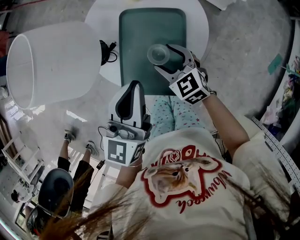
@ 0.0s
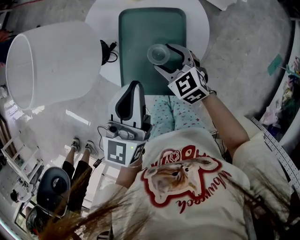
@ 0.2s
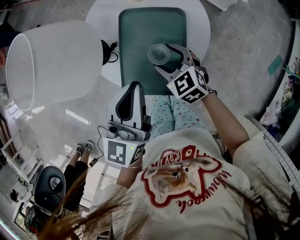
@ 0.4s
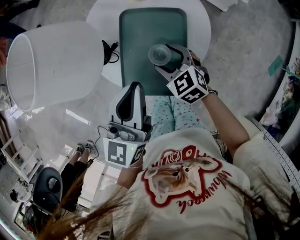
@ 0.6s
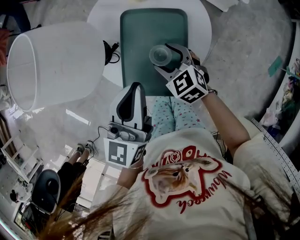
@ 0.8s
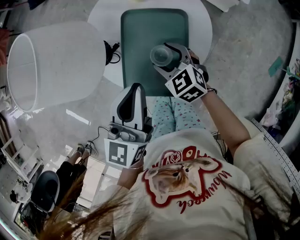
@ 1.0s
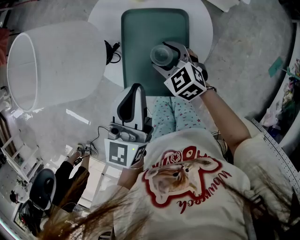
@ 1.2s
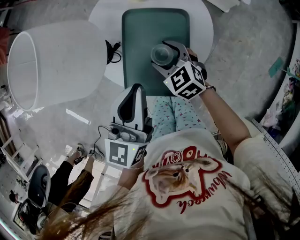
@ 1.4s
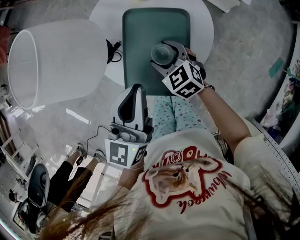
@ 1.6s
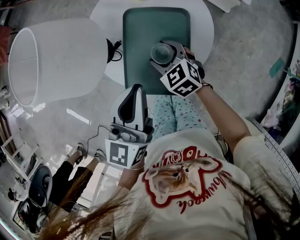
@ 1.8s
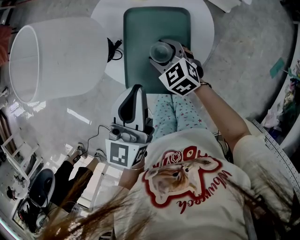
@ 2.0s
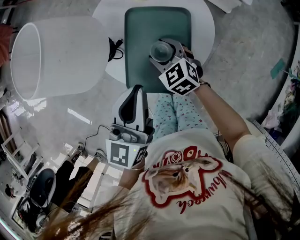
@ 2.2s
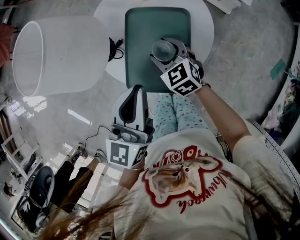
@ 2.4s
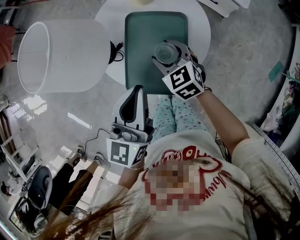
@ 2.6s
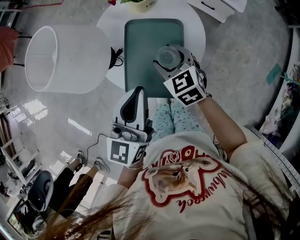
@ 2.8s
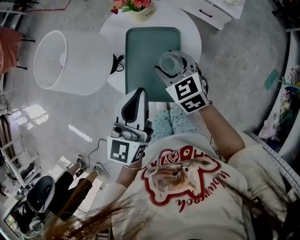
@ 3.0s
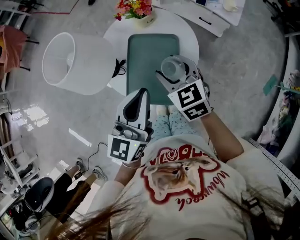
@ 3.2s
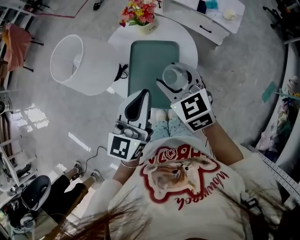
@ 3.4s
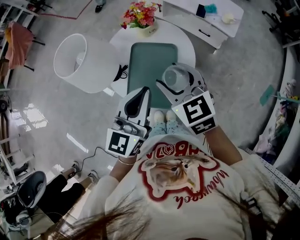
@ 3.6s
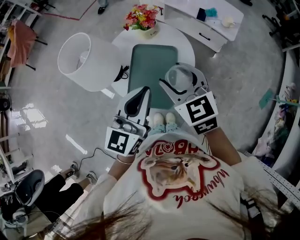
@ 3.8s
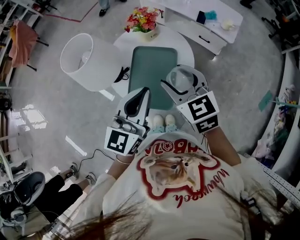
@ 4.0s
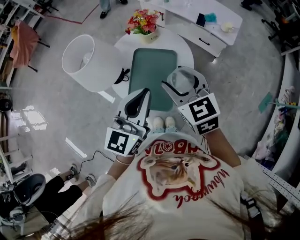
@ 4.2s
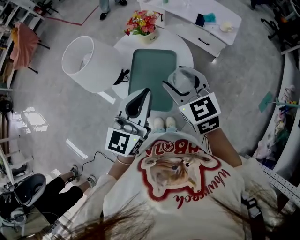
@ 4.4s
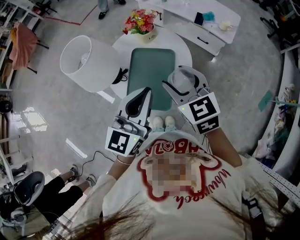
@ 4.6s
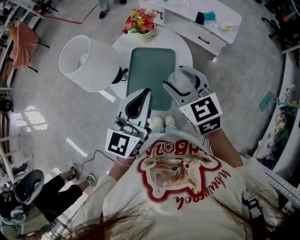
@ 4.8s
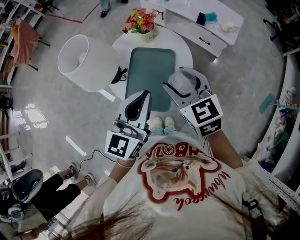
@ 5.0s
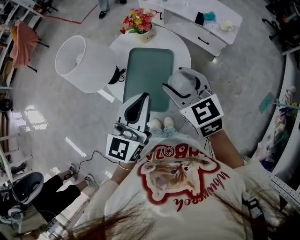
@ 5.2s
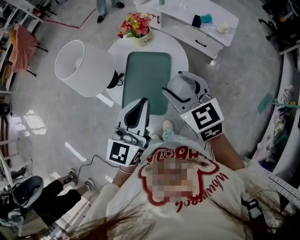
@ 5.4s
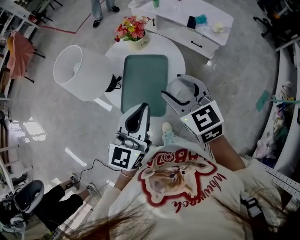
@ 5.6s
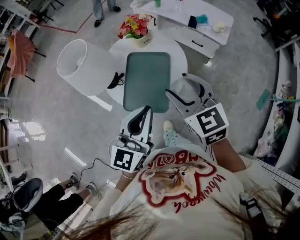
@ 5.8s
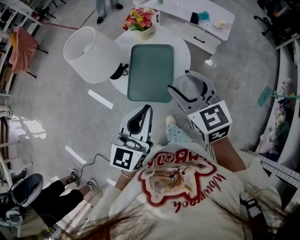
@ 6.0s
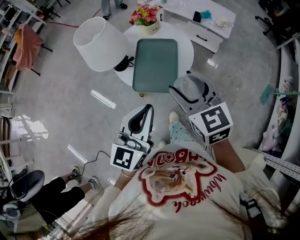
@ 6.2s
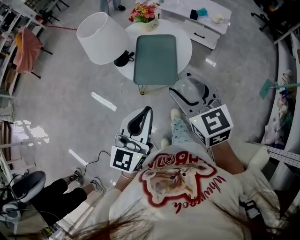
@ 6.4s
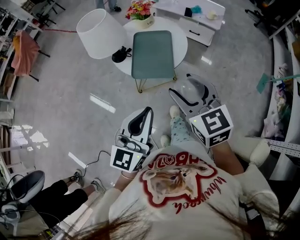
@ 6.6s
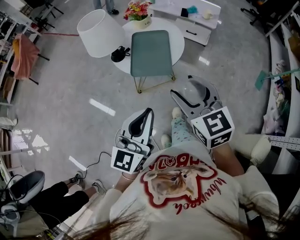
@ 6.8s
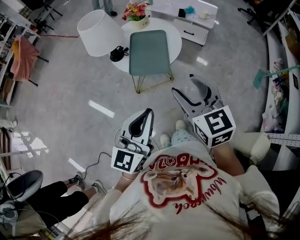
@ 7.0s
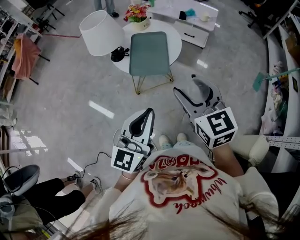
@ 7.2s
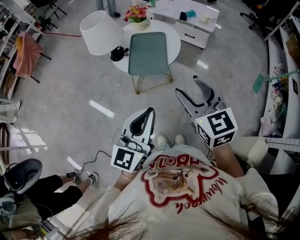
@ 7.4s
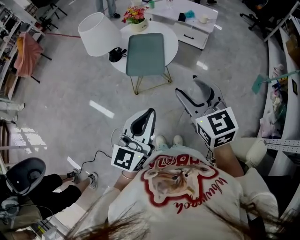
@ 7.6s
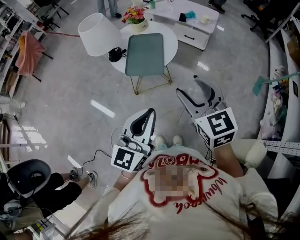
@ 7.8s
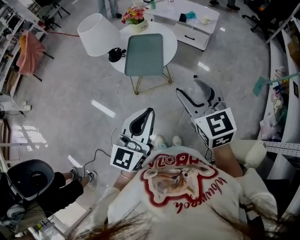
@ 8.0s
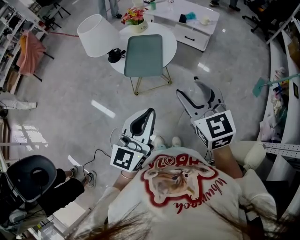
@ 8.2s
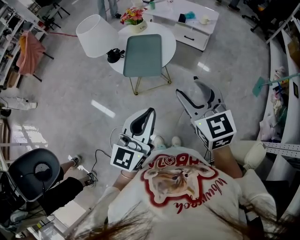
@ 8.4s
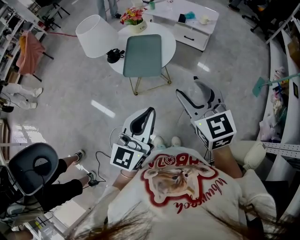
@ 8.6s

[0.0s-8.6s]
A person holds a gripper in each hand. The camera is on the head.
0.0s to 1.4s: The grippers stay close to where they were, moving slightly.
1.4s to 2.8s: The right gripper is displaced upward by approximately 5 cm.
2.8s to 4.4s: The right gripper is displaced upward by some 20 cm; the left gripper travels upward by approximately 10 cm.
4.4s to 5.8s: The left gripper is displaced backward by roughly 5 cm.
5.8s to 7.2s: Both grippers travel together backward, roughly 25 cm.
7.2s to 8.6s: The grippers both shift to the right by approximately 5 cm.

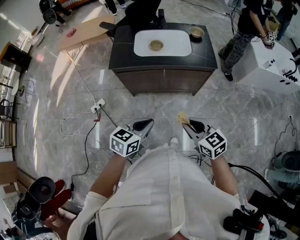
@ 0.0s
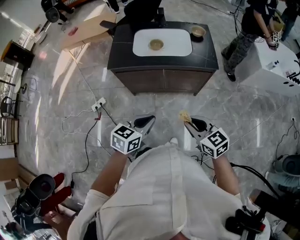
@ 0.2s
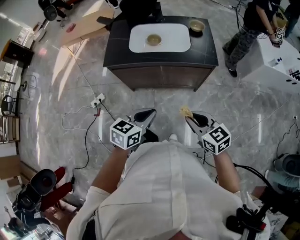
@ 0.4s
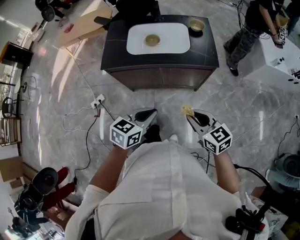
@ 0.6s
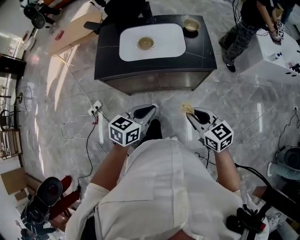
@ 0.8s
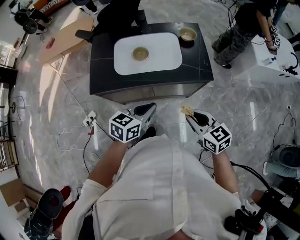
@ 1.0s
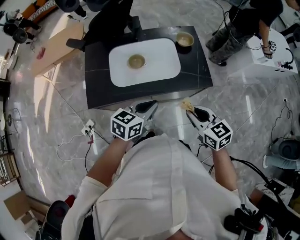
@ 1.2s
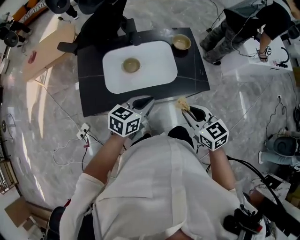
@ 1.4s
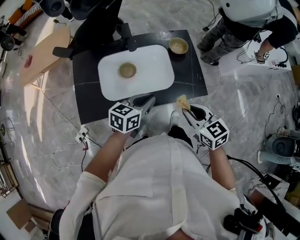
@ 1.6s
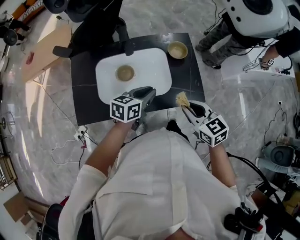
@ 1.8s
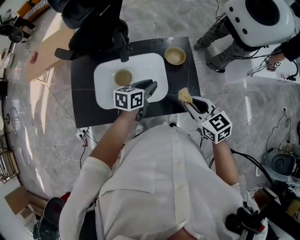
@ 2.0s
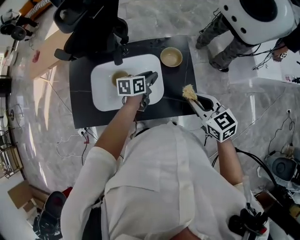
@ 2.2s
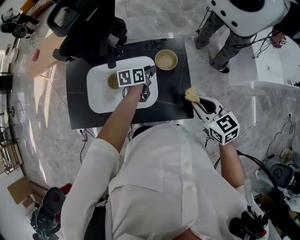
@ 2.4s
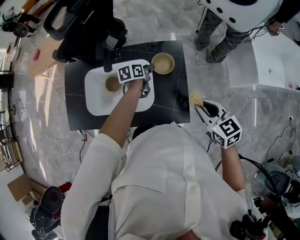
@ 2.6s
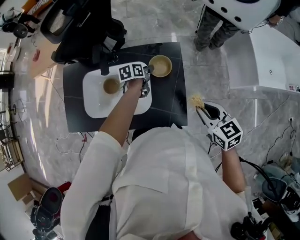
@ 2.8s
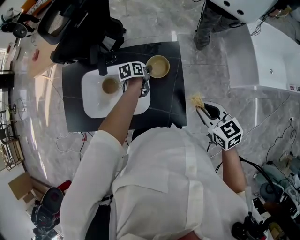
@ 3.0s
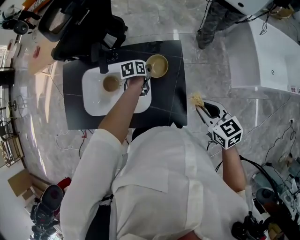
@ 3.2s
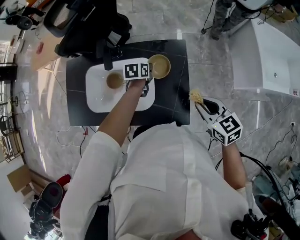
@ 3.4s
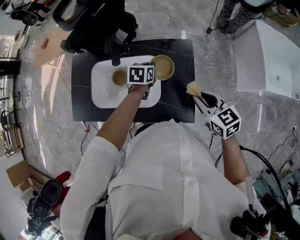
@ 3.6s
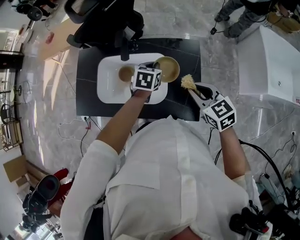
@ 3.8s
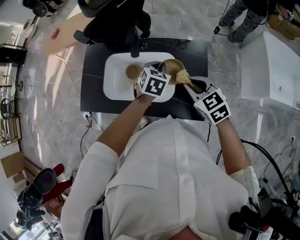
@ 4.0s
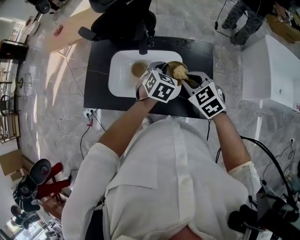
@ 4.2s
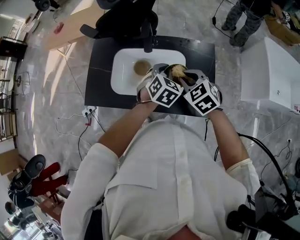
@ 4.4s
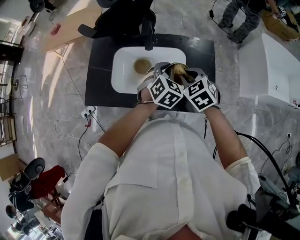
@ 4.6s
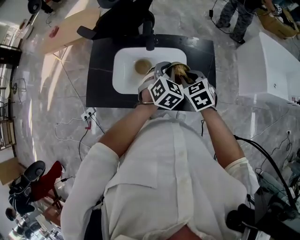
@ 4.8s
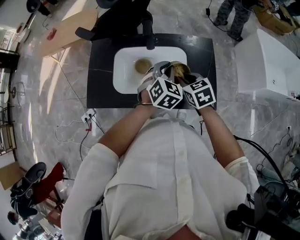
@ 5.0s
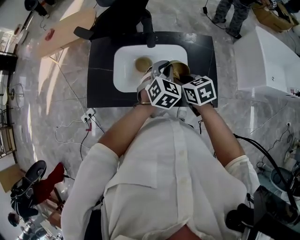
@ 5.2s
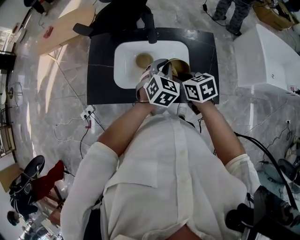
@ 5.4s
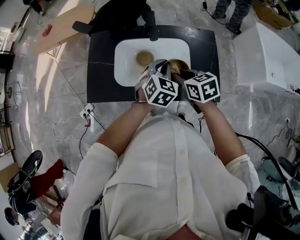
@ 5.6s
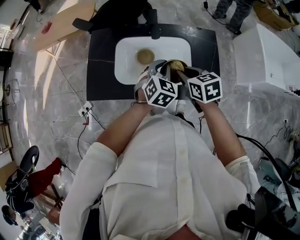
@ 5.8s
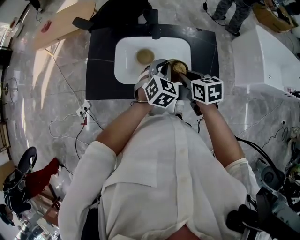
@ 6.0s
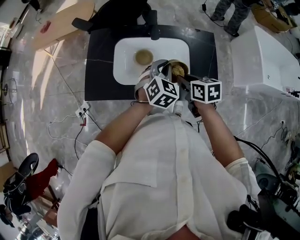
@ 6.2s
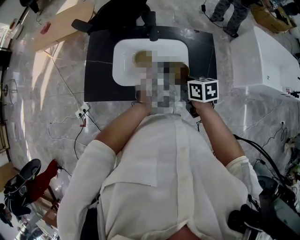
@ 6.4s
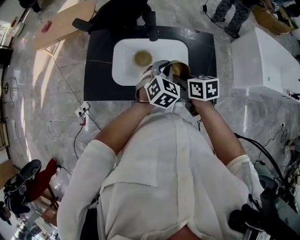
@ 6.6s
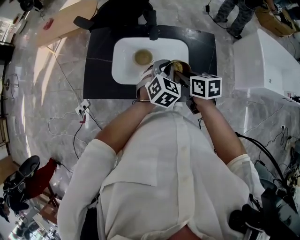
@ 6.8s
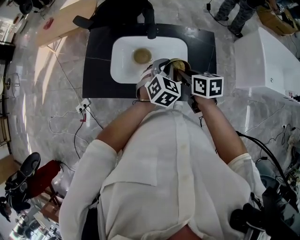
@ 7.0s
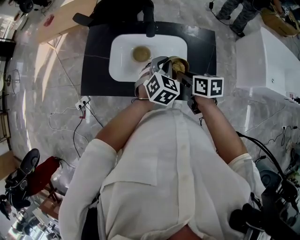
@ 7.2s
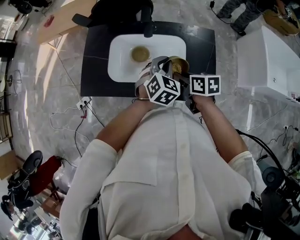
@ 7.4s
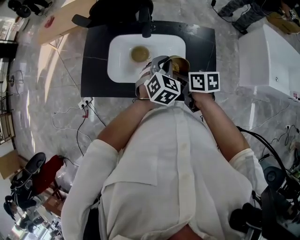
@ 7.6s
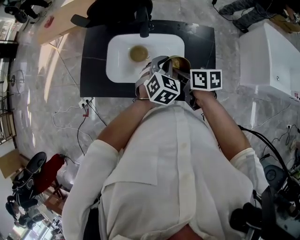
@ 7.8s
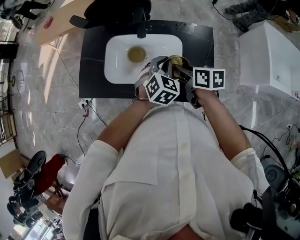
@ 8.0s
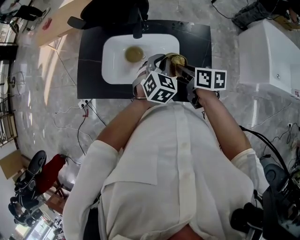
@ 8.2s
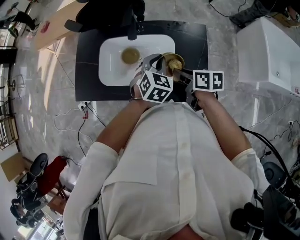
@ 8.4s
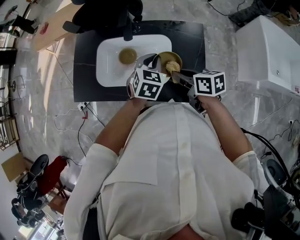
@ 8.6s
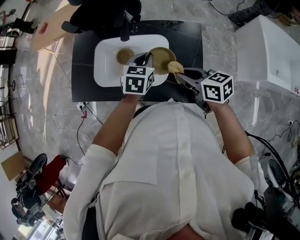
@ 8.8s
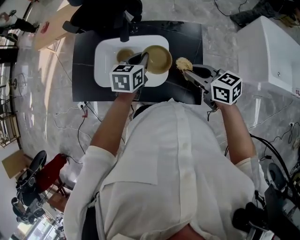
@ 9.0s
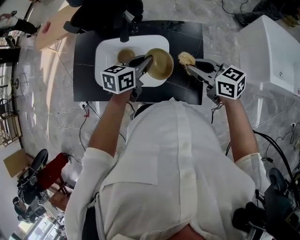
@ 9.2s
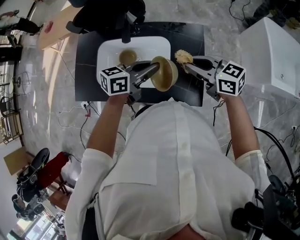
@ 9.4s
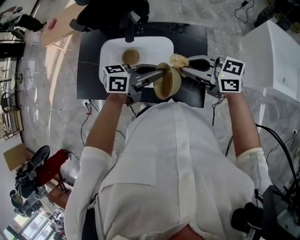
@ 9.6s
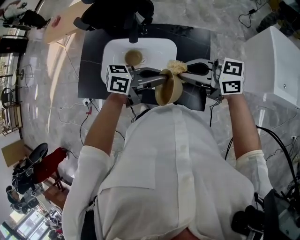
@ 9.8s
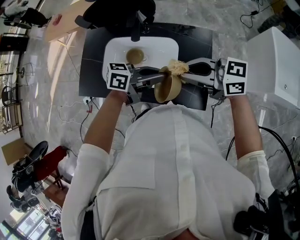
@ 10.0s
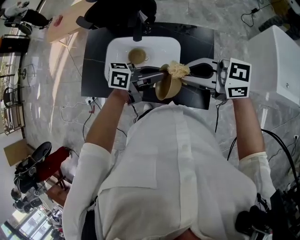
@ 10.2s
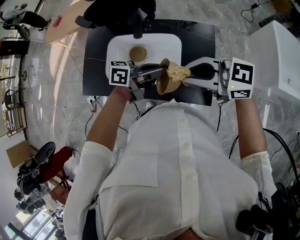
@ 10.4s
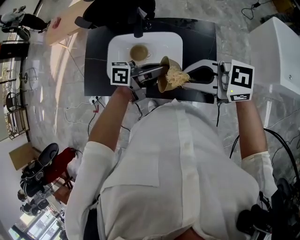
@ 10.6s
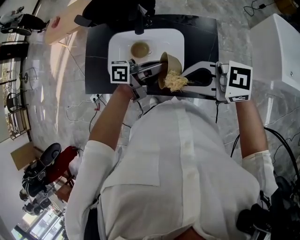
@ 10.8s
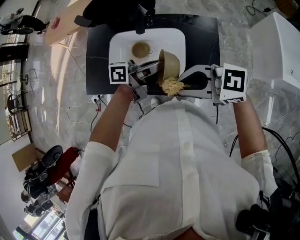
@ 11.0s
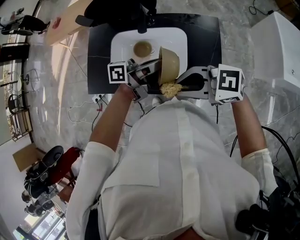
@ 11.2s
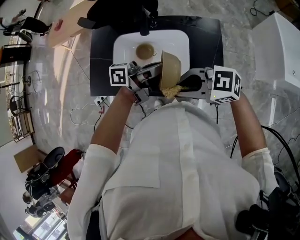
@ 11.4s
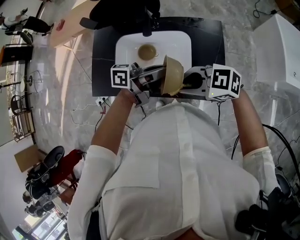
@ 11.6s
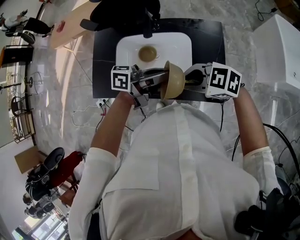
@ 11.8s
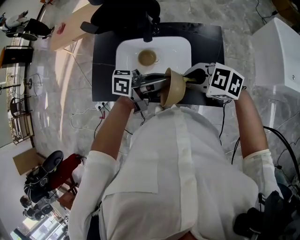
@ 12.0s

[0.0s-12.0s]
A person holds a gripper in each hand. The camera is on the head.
0.0s to 1.6s: Both grippers travel together forward, roughly 40 cm.
1.6s to 3.0s: The left gripper shifts about 40 cm forward, downward and to the right, and rotates some 40 degrees; the right gripper is displaced to the right and forward by about 30 cm.
3.0s to 4.4s: The left gripper moves upward, to the left and backward, roughly 25 cm, and twists about 60 degrees clockwise, seen from behind. Meanwhile the right gripper goes about 25 cm to the left, and changes its angle by about 30 degrees.
4.4s to 6.0s: The grippers both shift to the left by some 10 cm. The right gripper rolls clockwise, seen from behind, by approximately 40 degrees.
6.0s to 7.6s: The left gripper travels to the right by some 5 cm. The right gripper ends up approximately 5 cm from where it was, and swivels roughly 20 degrees.
7.6s to 9.0s: The right gripper moves to the right and upward, about 15 cm, and changes its angle by roughly 30 degrees, while the left gripper changes its angle by about 40 degrees.
9.0s to 10.4s: The right gripper travels upward by some 10 cm, and rotates roughly 40 degrees. The left gripper shifts by roughly 10 cm, and angles its fingers upward, by some 30 degrees.
10.4s to 12.0s: The right gripper is displaced downward by some 10 cm, and rotates about 30 degrees, while the left gripper shifts by approximately 5 cm.

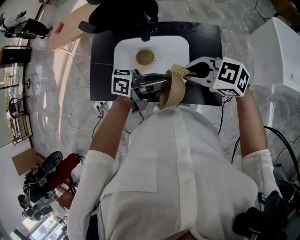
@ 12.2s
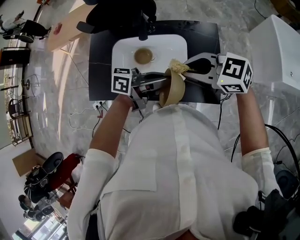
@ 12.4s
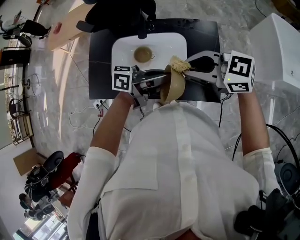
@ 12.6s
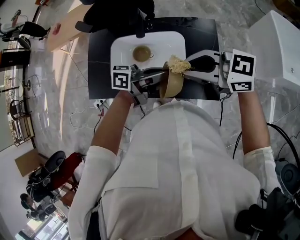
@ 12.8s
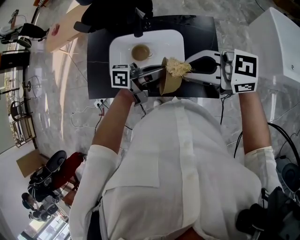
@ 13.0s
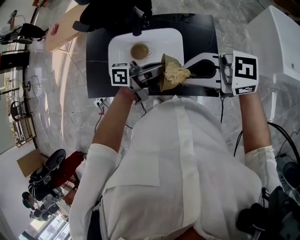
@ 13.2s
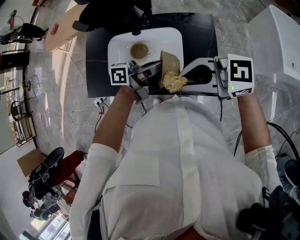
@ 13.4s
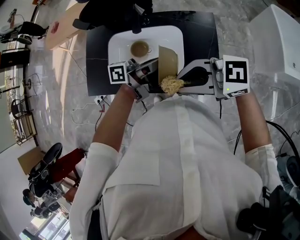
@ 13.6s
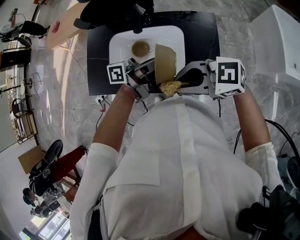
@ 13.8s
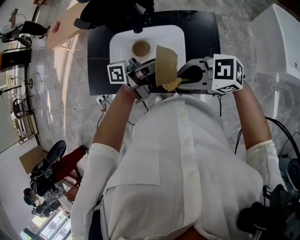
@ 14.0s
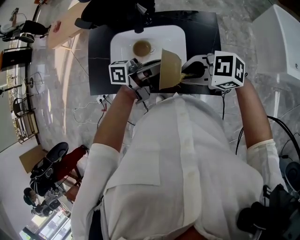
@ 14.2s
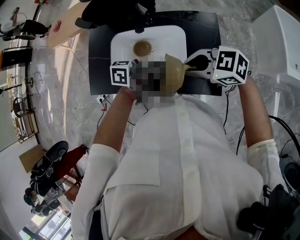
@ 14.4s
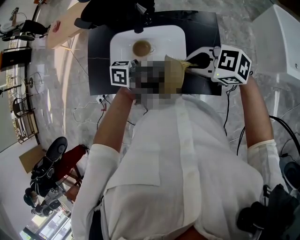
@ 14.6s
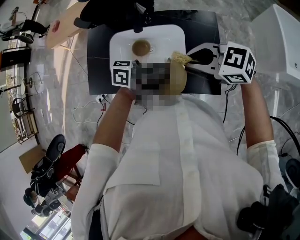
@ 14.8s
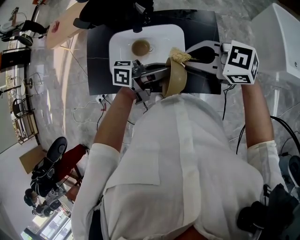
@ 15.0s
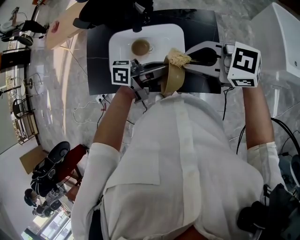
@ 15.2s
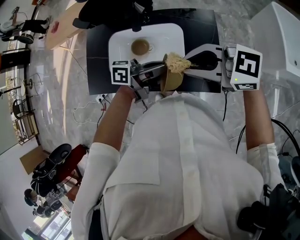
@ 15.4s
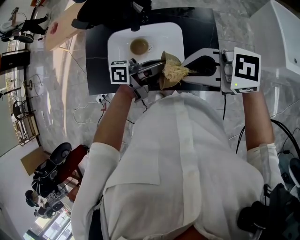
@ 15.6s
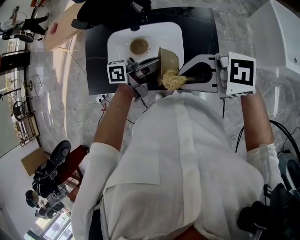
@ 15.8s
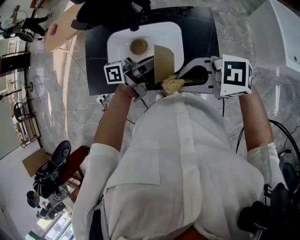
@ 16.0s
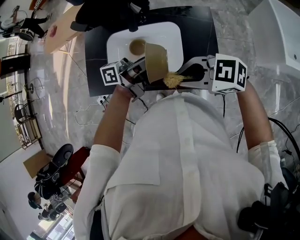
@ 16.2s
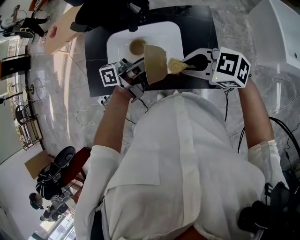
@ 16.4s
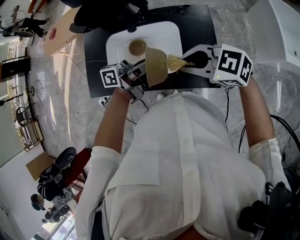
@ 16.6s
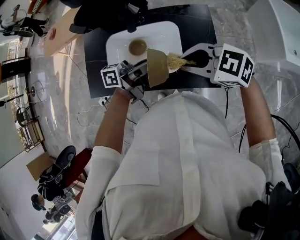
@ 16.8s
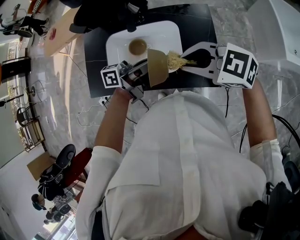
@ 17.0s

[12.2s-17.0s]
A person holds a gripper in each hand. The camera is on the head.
12.2s to 13.8s: The right gripper shifts by approximately 10 cm, and changes its angle by about 20 degrees. Meanwhile the left gripper moves about 5 cm, and changes its angle by some 20 degrees.
13.8s to 15.4s: The right gripper ends up roughly 5 cm from where it was.
